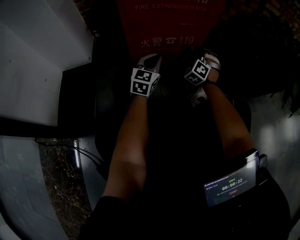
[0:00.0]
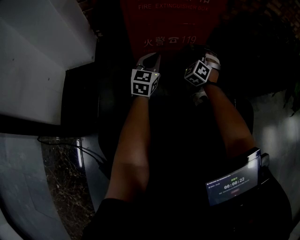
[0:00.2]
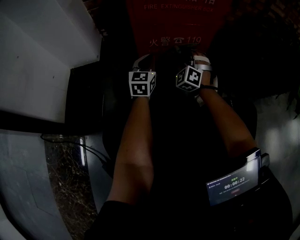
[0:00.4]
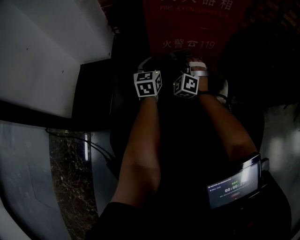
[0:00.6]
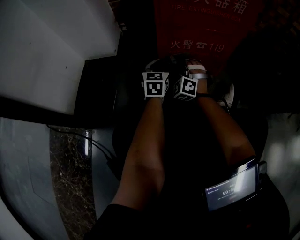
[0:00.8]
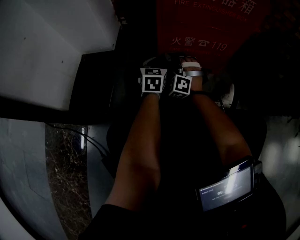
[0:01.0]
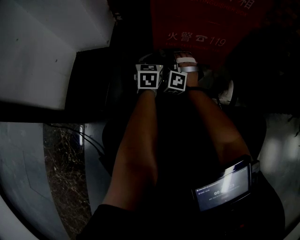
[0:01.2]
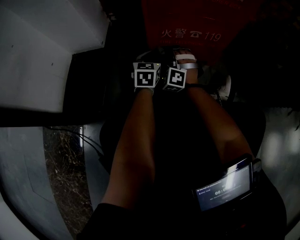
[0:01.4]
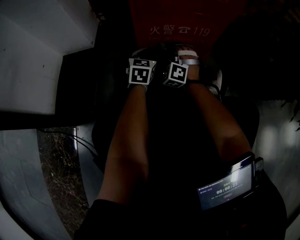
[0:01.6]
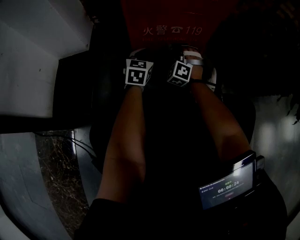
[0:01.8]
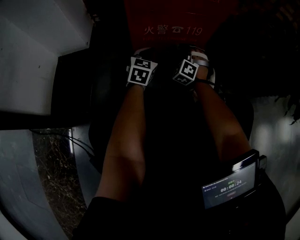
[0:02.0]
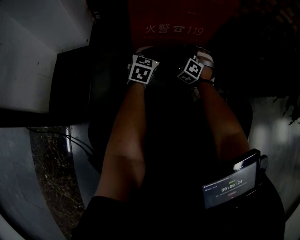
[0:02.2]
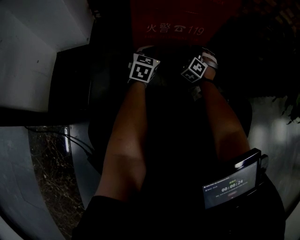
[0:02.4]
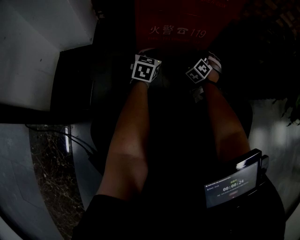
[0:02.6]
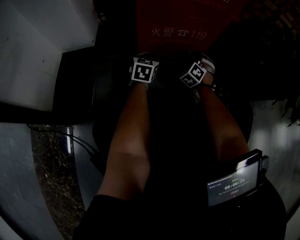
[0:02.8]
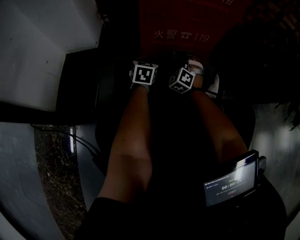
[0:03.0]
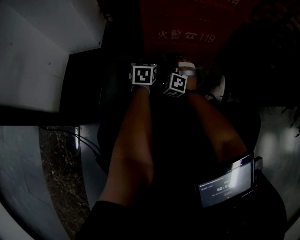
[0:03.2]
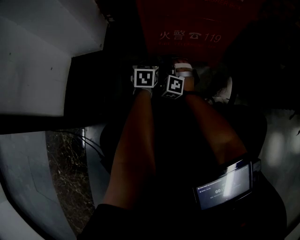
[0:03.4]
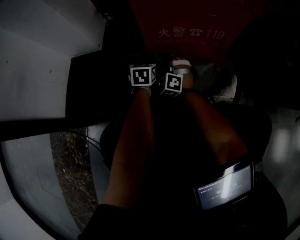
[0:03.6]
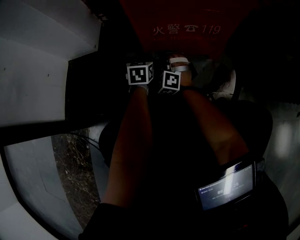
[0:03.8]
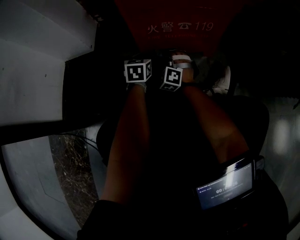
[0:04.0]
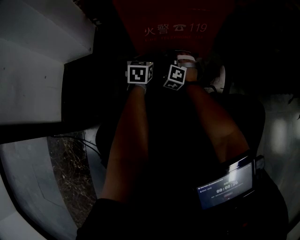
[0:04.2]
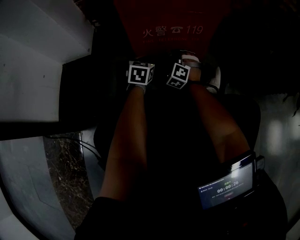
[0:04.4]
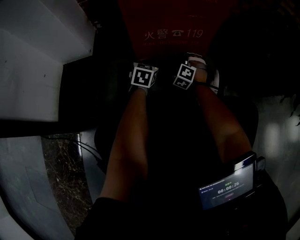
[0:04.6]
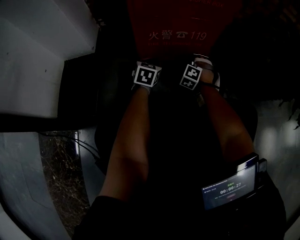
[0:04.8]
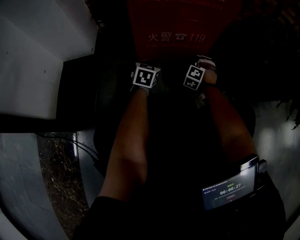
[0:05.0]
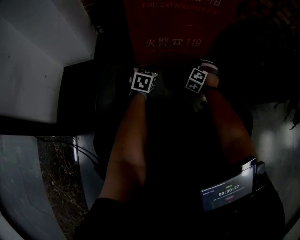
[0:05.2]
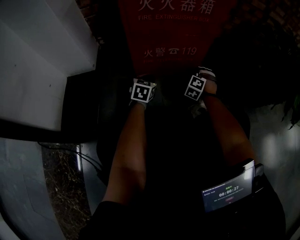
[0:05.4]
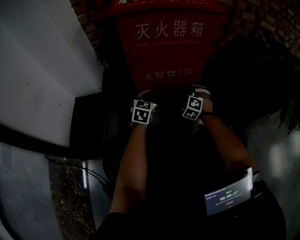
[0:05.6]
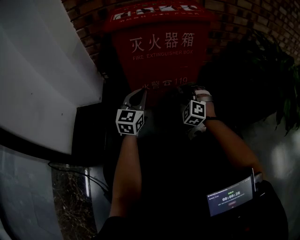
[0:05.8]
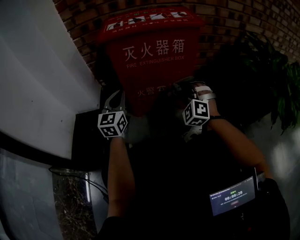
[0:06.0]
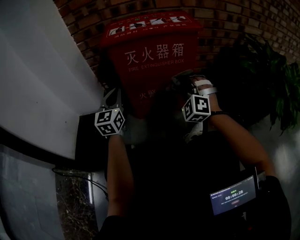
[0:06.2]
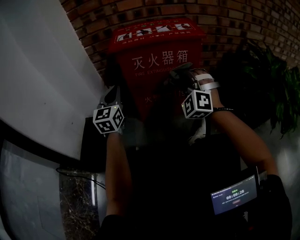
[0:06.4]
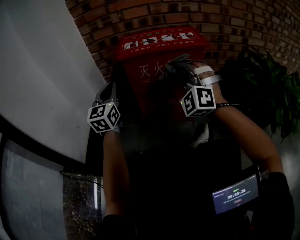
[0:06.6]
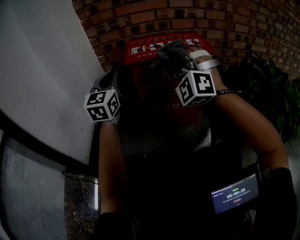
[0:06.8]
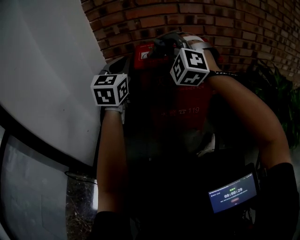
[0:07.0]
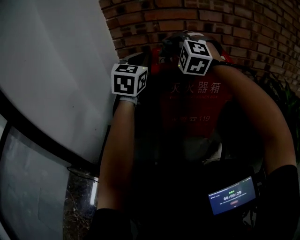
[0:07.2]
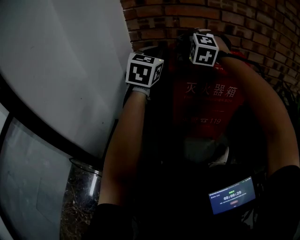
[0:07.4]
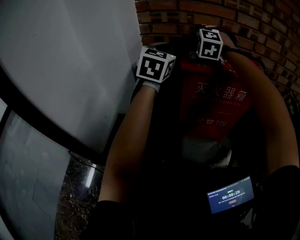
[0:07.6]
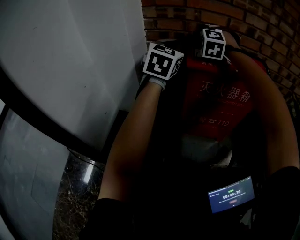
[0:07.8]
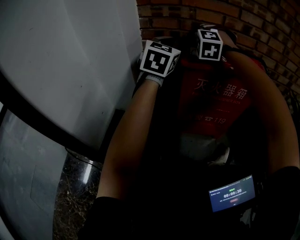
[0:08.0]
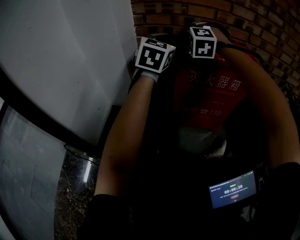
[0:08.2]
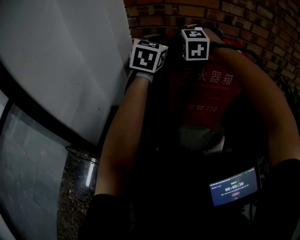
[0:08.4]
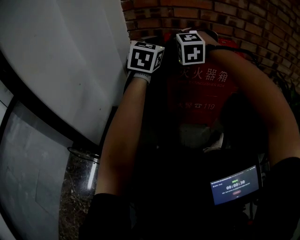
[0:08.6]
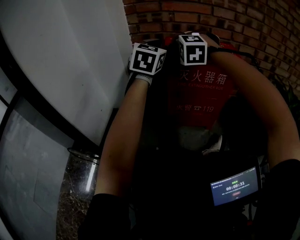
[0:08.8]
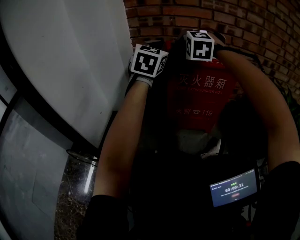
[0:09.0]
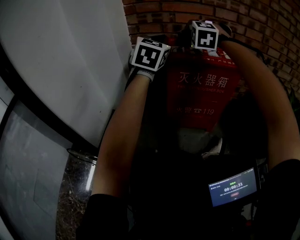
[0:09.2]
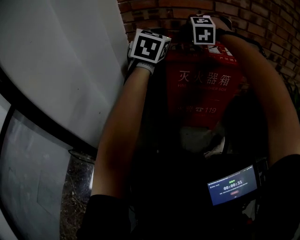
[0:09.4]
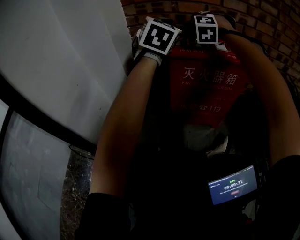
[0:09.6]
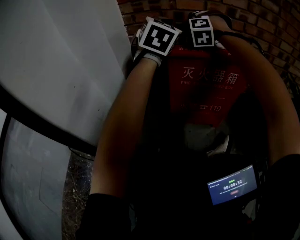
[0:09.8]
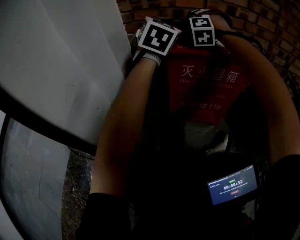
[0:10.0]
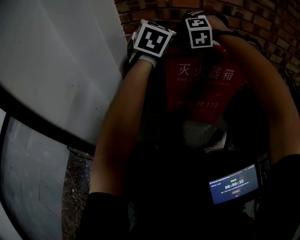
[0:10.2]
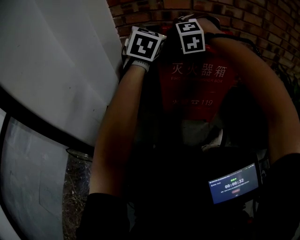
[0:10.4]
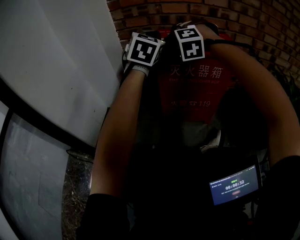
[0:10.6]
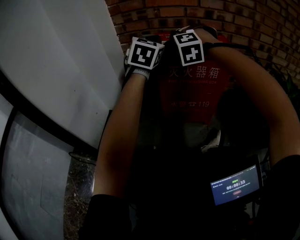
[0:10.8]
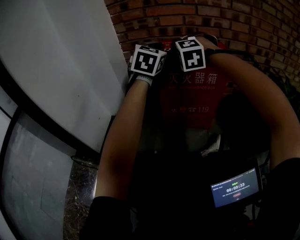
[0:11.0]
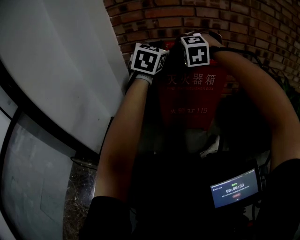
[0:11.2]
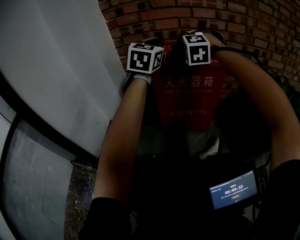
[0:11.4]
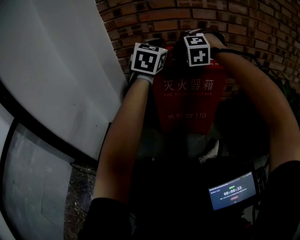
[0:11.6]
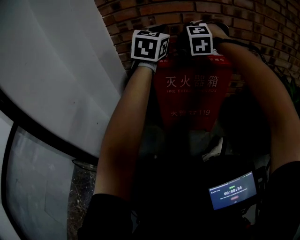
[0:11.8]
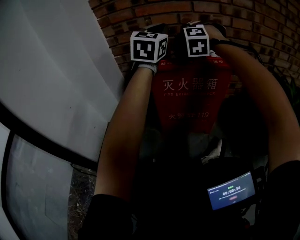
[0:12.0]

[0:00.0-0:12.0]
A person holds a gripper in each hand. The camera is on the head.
0:00.0 to 0:01.6: The left gripper shifts by about 10 cm, and turns by about 20 degrees.
0:04.4 to 0:06.0: The left gripper shifts approximately 25 cm upward, and points its fingers some 40 degrees further upward.
0:06.0 to 0:07.6: The left gripper shifts approximately 25 cm upward.
0:07.6 to 0:09.0: The left gripper changes place by about 10 cm.
0:09.0 to 0:10.4: The left gripper moves about 5 cm.
0:10.4 to 0:12.0: The left gripper moves about 10 cm.

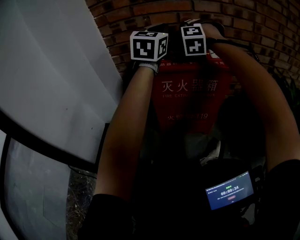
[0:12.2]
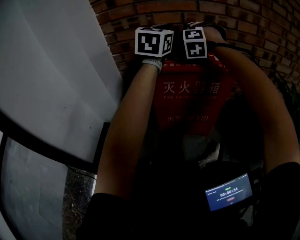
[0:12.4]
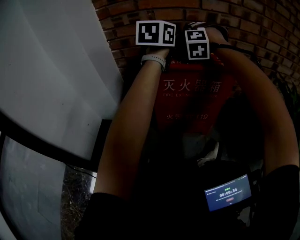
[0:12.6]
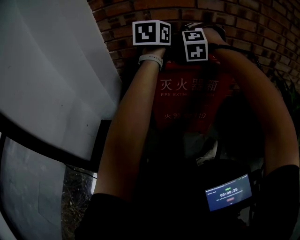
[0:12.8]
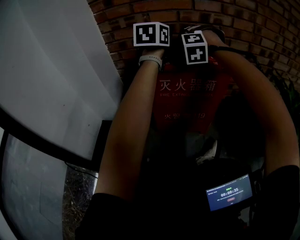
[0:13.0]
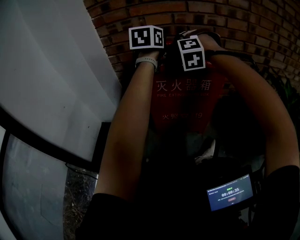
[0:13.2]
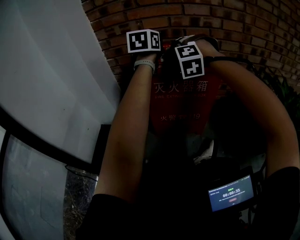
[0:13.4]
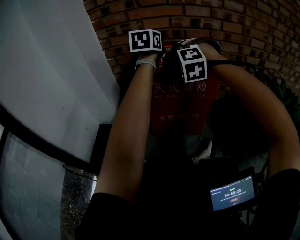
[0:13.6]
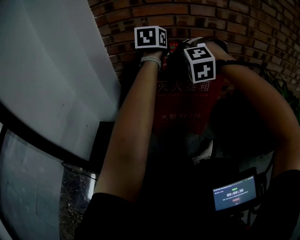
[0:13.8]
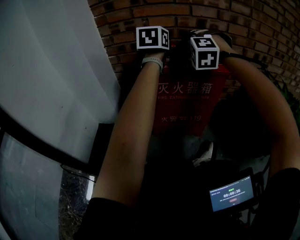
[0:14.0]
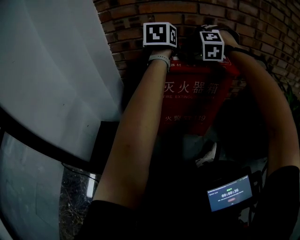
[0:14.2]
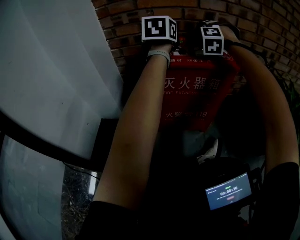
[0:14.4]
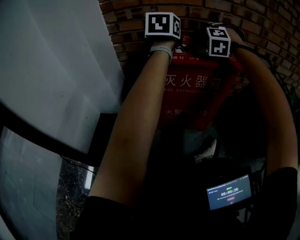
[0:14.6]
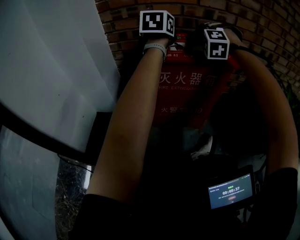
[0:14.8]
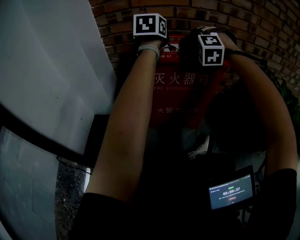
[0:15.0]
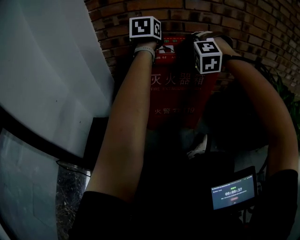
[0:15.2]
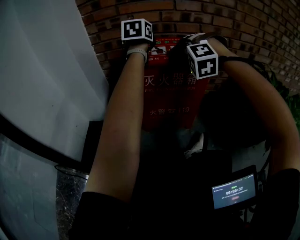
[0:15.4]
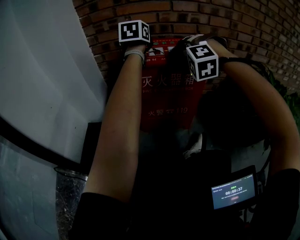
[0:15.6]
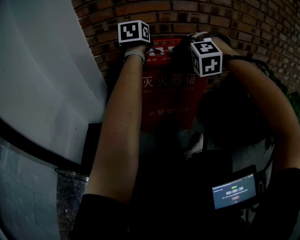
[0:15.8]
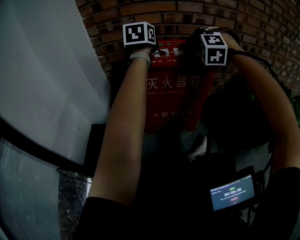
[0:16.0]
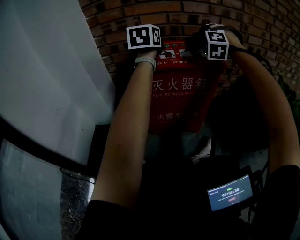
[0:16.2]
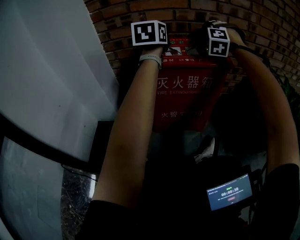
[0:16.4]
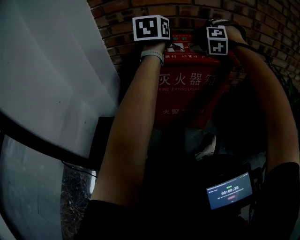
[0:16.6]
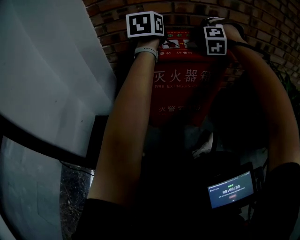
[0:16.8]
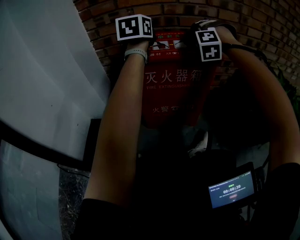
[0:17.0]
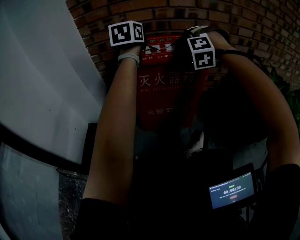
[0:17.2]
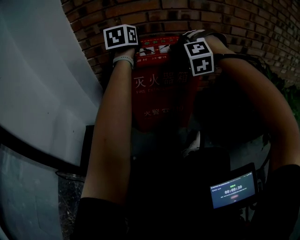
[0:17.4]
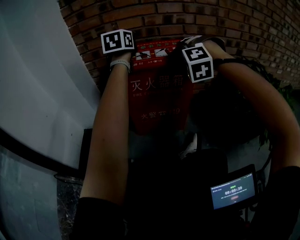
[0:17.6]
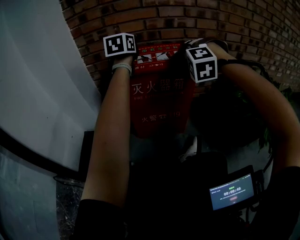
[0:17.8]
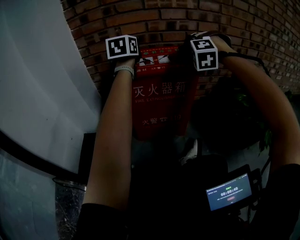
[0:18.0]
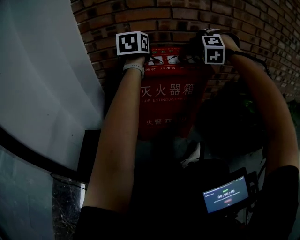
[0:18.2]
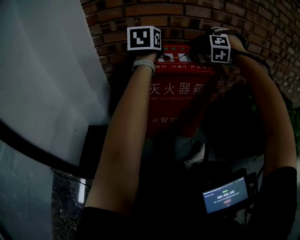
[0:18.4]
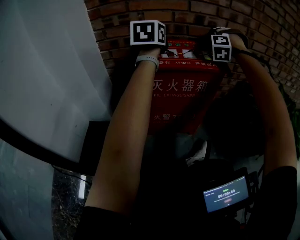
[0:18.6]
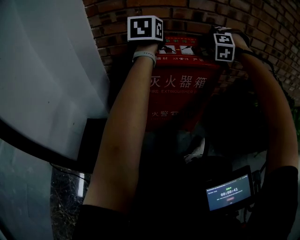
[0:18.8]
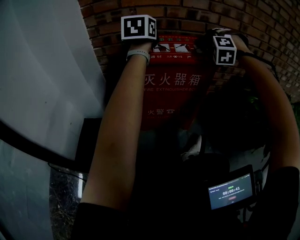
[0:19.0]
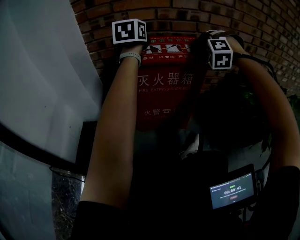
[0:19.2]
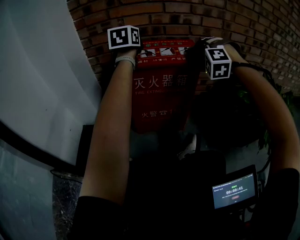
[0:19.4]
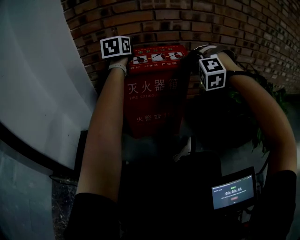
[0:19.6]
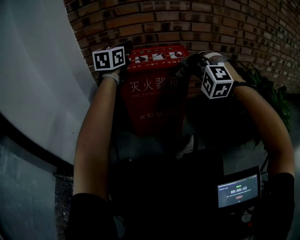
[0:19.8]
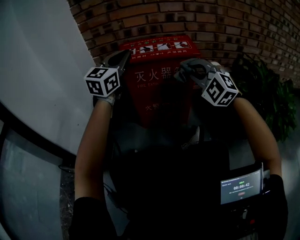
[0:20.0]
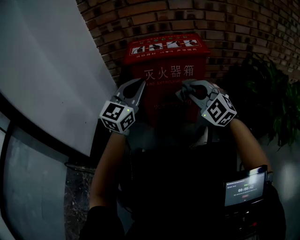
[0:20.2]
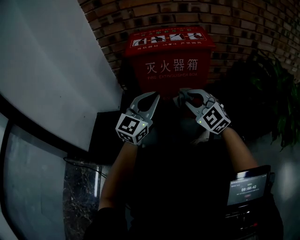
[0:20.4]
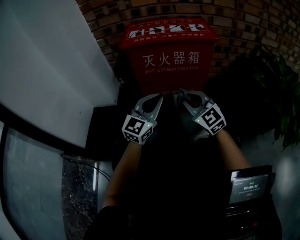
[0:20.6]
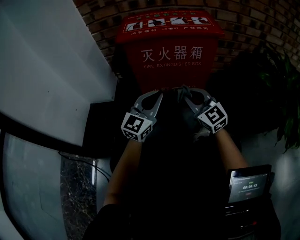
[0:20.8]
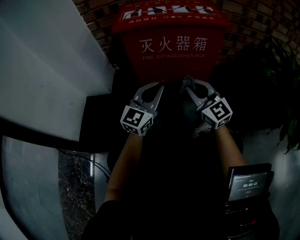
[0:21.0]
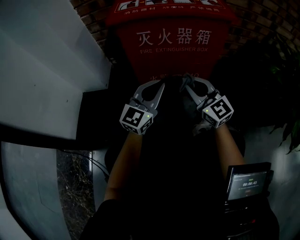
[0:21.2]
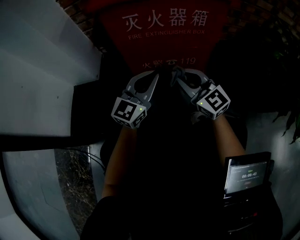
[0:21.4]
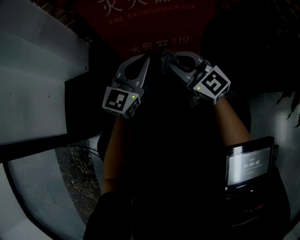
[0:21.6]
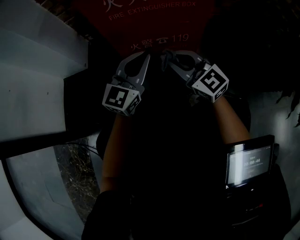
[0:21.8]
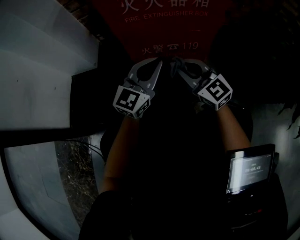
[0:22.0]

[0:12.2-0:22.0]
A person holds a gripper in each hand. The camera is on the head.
0:12.2 to 0:13.6: The left gripper shifts by some 5 cm, and changes its angle by some 20 degrees.
0:19.2 to 0:20.6: The left gripper moves about 35 cm, and turns by approximately 30 degrees.
0:20.6 to 0:22.0: The left gripper is displaced downward by some 10 cm.

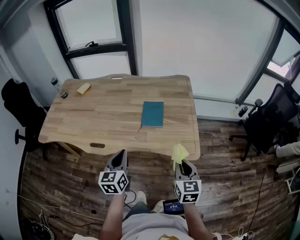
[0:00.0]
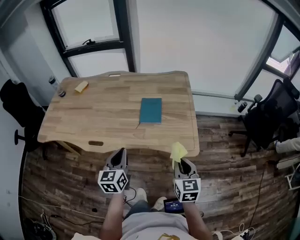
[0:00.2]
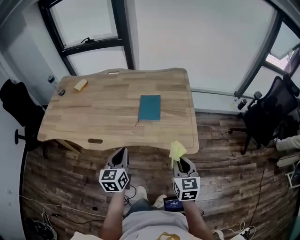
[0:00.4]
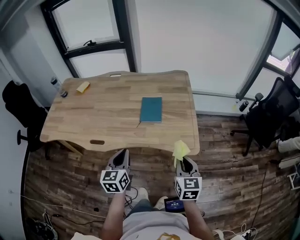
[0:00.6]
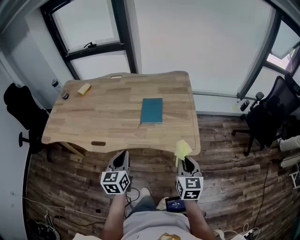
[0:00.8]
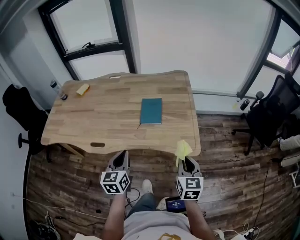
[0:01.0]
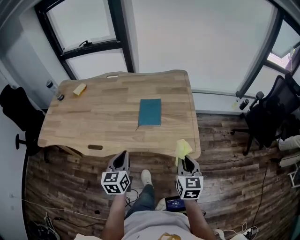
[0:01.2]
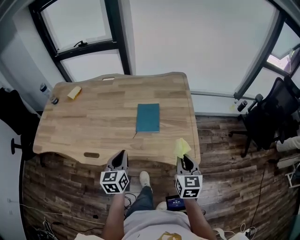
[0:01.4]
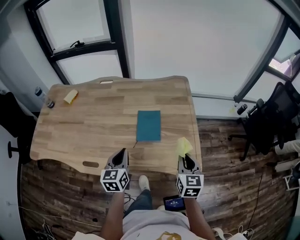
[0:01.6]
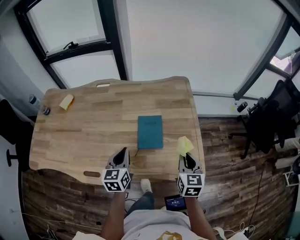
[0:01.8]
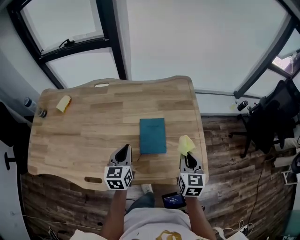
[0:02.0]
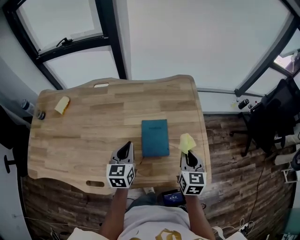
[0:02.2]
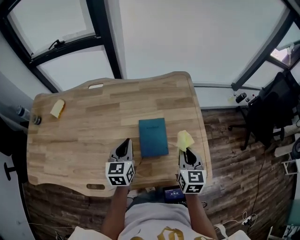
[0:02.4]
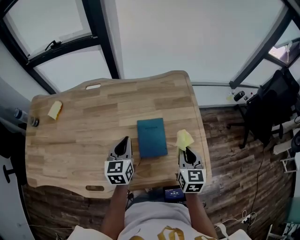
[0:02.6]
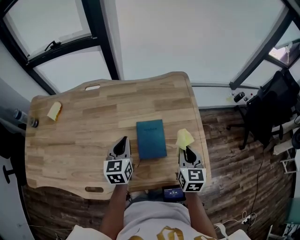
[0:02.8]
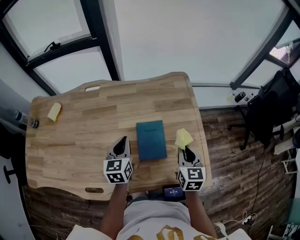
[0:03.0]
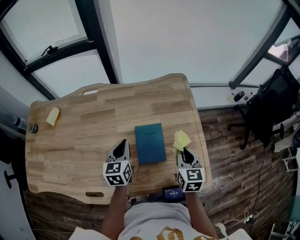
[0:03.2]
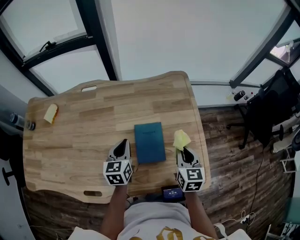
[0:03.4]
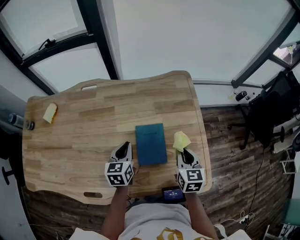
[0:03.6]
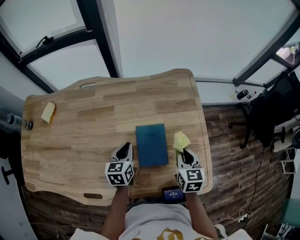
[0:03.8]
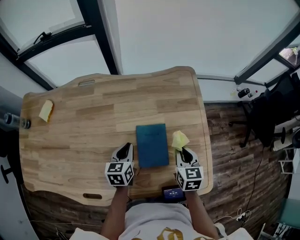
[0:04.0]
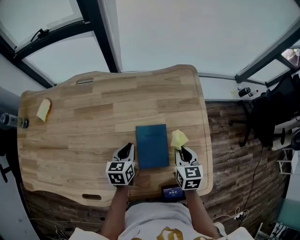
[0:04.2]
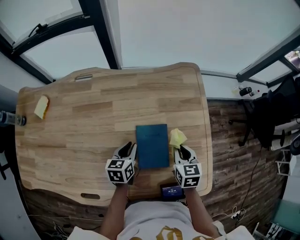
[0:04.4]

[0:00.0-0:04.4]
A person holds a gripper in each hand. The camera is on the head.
0:00.0 to 0:01.4: The two grippers go approximately 10 cm forward.
0:01.4 to 0:03.0: Both grippers travel together forward, some 25 cm.
0:03.0 to 0:04.4: The left gripper travels downward by about 15 cm, and turns by approximately 20 degrees, while the right gripper goes some 15 cm downward and forward.
